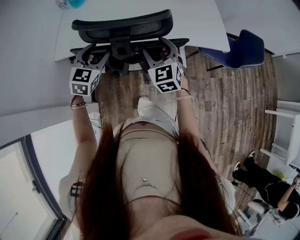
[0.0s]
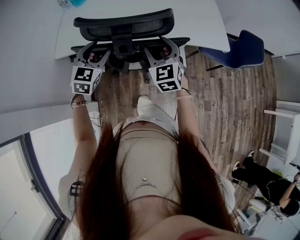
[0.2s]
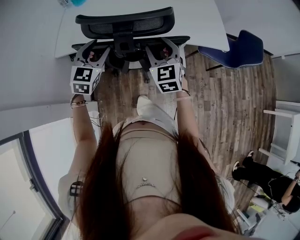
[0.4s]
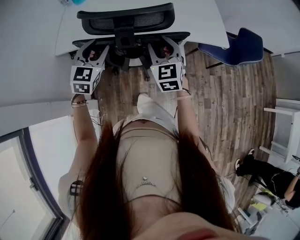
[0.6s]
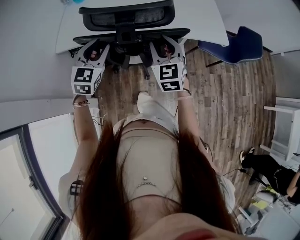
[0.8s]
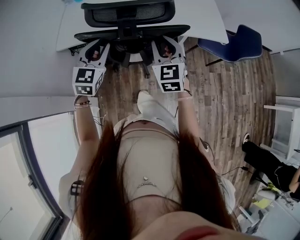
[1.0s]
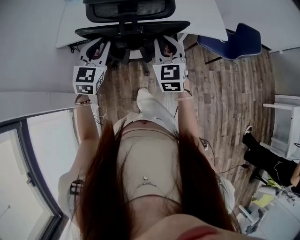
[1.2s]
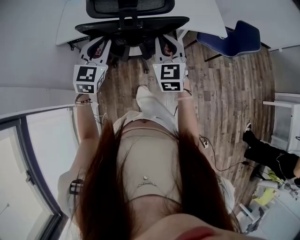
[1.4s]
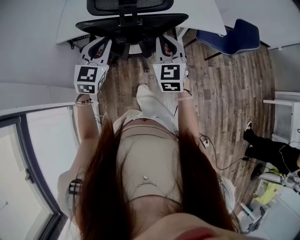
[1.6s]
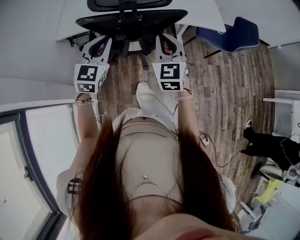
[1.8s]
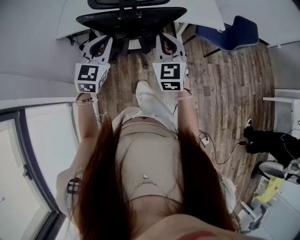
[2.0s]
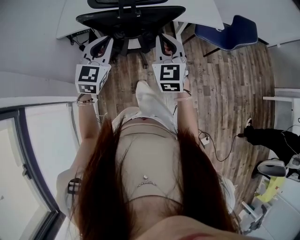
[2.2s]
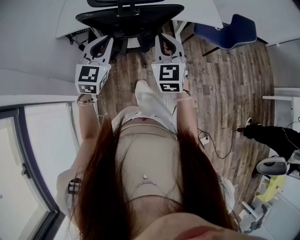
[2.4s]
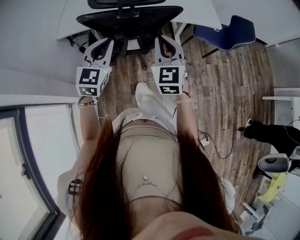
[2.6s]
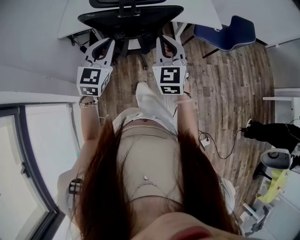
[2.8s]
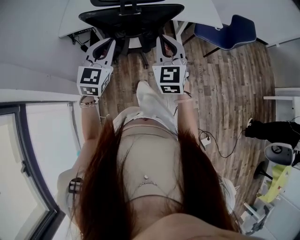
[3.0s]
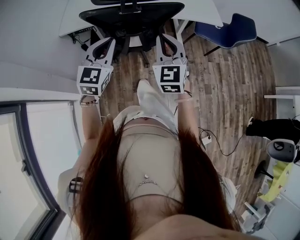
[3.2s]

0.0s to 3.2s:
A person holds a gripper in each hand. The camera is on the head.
0.0s to 1.6s: The grippers both shift backward by roughly 10 cm. The right gripper closes its fingers; the left gripper closes up.
1.6s to 3.2s: Both grippers travel together backward, some 10 cm.

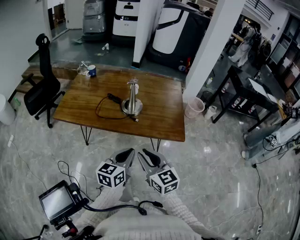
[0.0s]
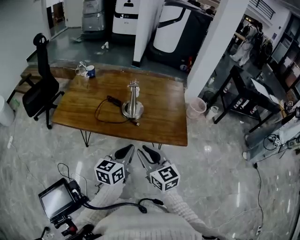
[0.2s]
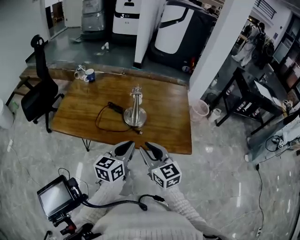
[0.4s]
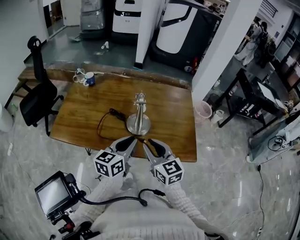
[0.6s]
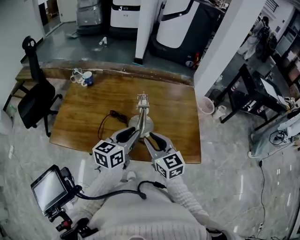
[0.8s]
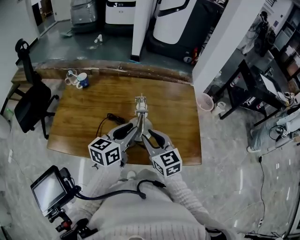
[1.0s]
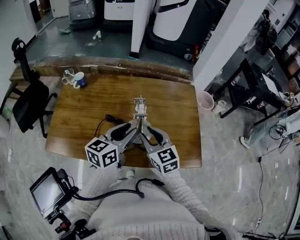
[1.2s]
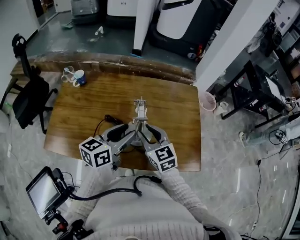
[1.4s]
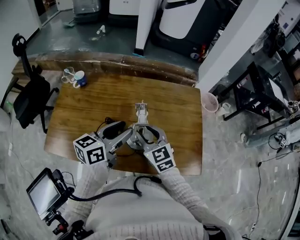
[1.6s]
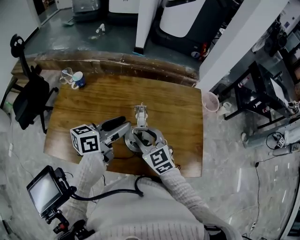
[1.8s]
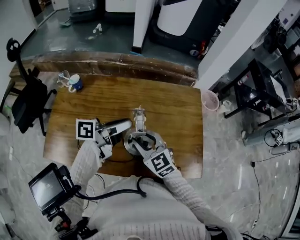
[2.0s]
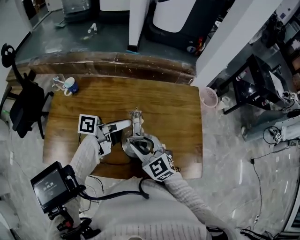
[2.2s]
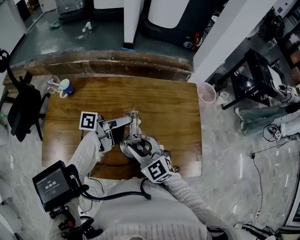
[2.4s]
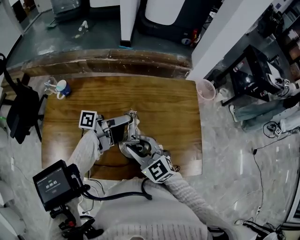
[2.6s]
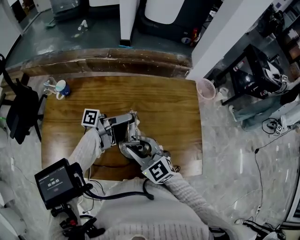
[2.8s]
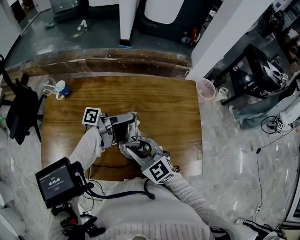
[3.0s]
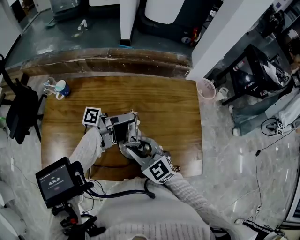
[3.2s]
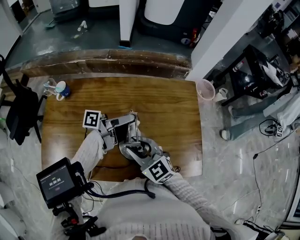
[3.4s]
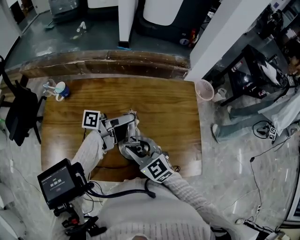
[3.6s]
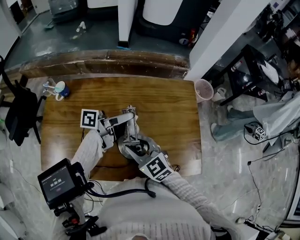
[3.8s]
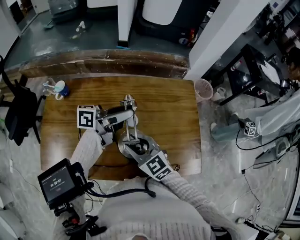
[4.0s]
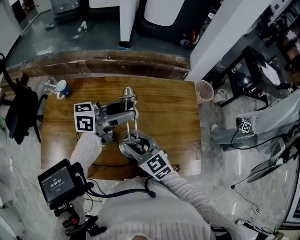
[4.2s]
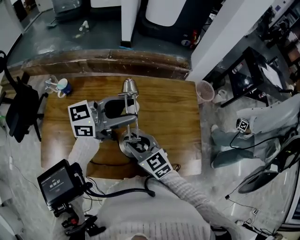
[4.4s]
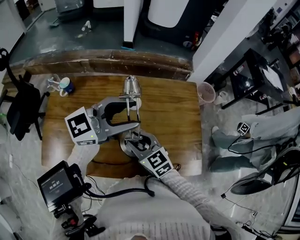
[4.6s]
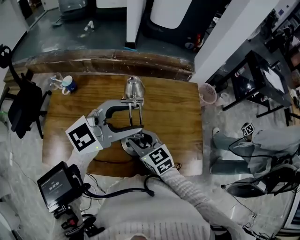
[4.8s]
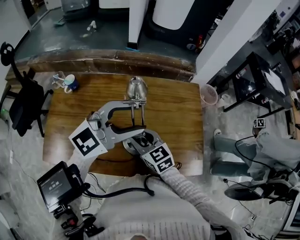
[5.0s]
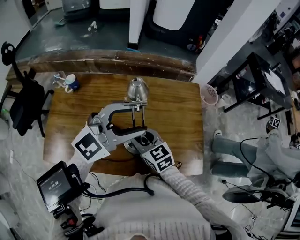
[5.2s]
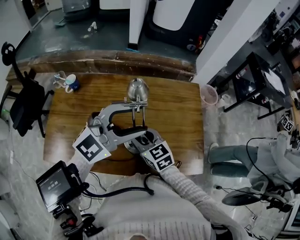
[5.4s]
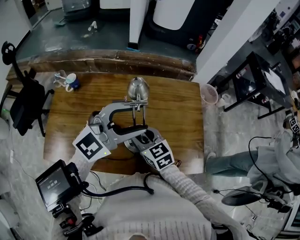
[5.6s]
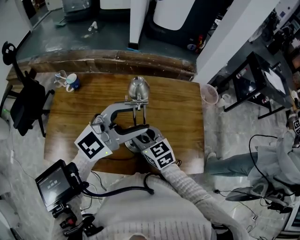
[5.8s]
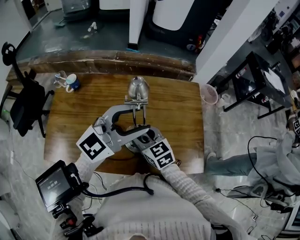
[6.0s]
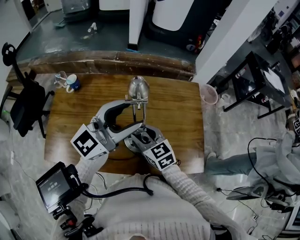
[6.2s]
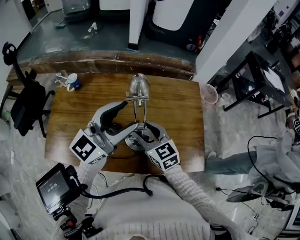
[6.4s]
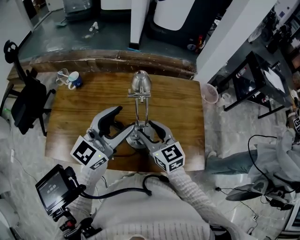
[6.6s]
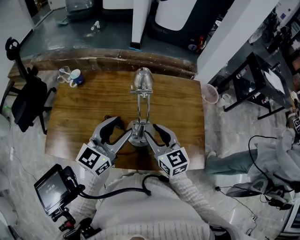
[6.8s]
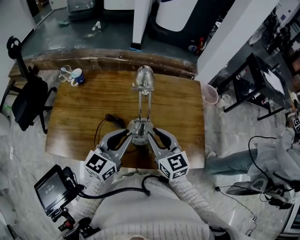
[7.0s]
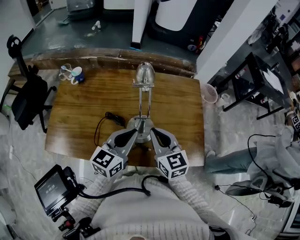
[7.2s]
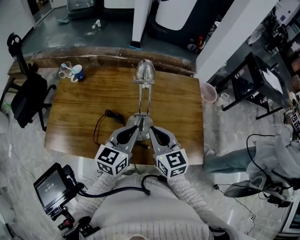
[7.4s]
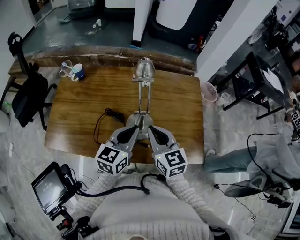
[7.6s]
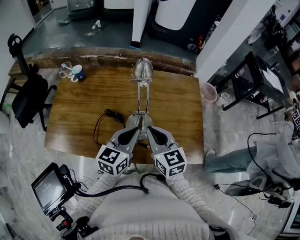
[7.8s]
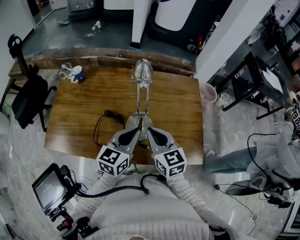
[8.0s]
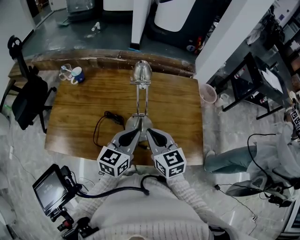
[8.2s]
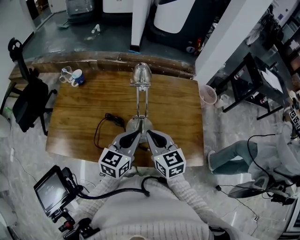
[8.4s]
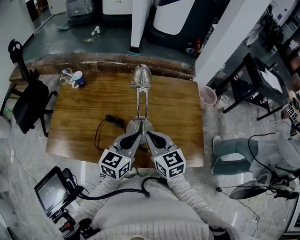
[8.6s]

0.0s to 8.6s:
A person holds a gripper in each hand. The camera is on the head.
0.0s to 1.4s: Both grippers move forward, some 35 cm. The left gripper opens up.
1.4s to 2.8s: The left gripper travels forward by approximately 15 cm, and rotates around the line of its fingers by approximately 60 degrees, counterclockwise from behind.
2.8s to 4.4s: The left gripper heads upward, covering about 10 cm, and rolls clockwise, seen from behind, by some 70 degrees.
4.4s to 5.8s: The left gripper travels backward by some 10 cm, and rotates around the line of its fingers by roughly 40 degrees, clockwise from behind.
5.8s to 7.2s: The right gripper travels upward, to the right and backward by about 10 cm, and closes up, while the left gripper is displaced downward and backward by approximately 15 cm, changes its angle by roughly 50 degrees, and closes.
7.2s to 8.6s: The grippers stay close to where they were, moving slightly.

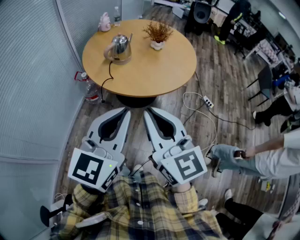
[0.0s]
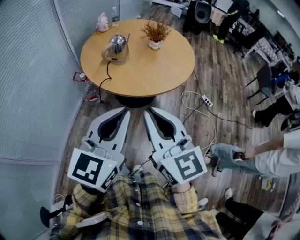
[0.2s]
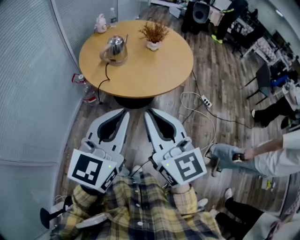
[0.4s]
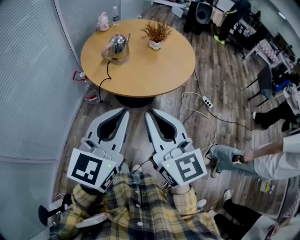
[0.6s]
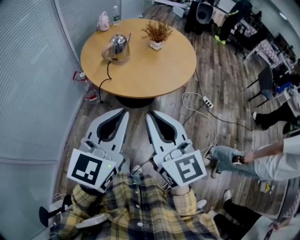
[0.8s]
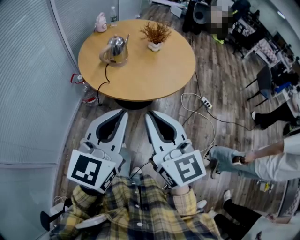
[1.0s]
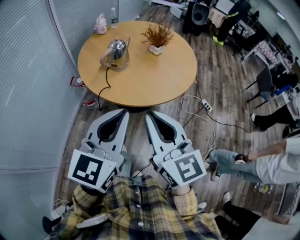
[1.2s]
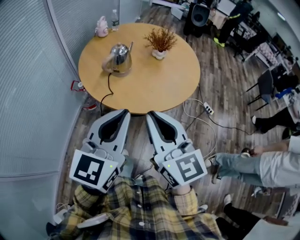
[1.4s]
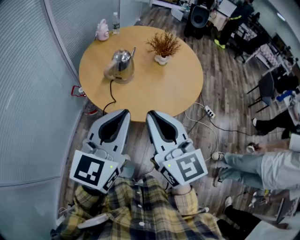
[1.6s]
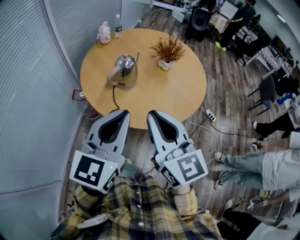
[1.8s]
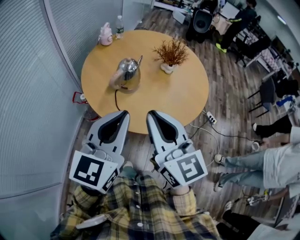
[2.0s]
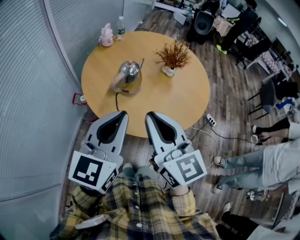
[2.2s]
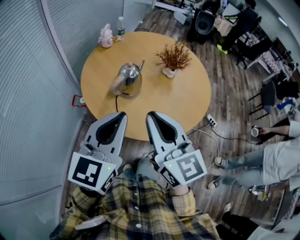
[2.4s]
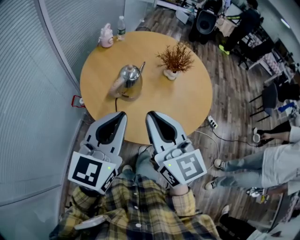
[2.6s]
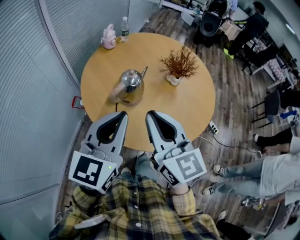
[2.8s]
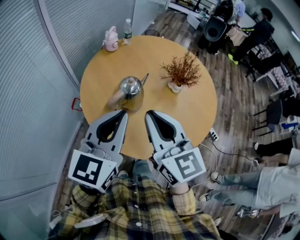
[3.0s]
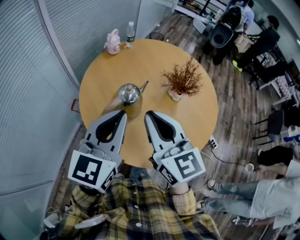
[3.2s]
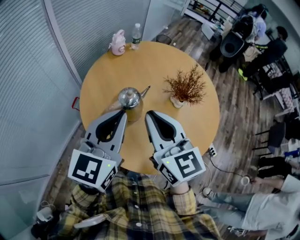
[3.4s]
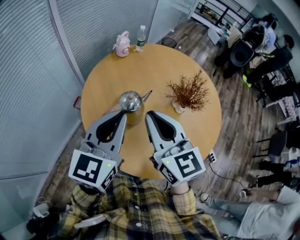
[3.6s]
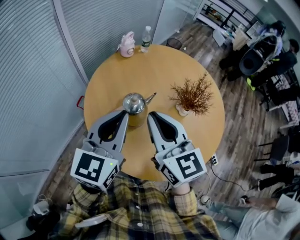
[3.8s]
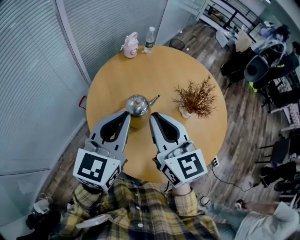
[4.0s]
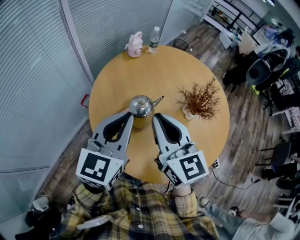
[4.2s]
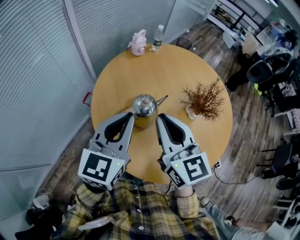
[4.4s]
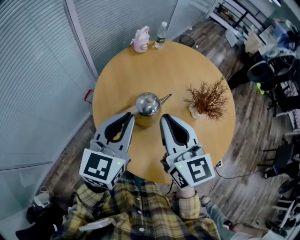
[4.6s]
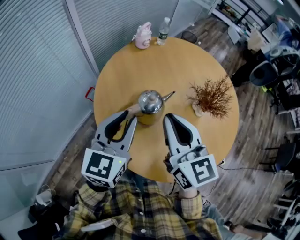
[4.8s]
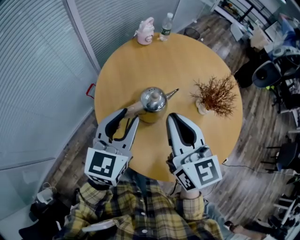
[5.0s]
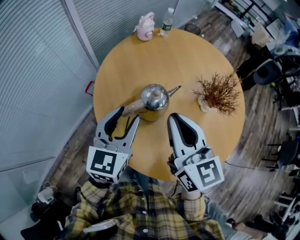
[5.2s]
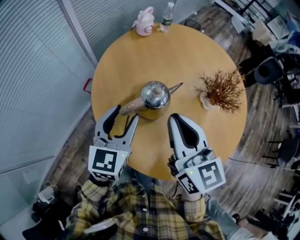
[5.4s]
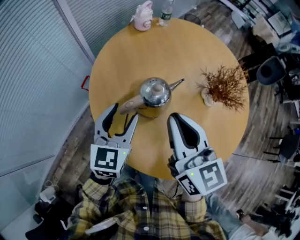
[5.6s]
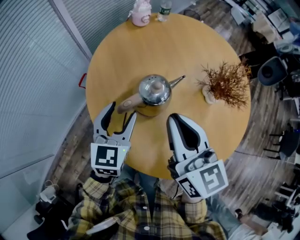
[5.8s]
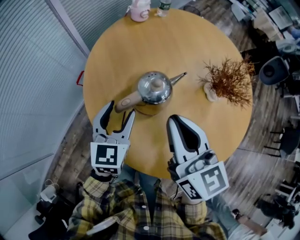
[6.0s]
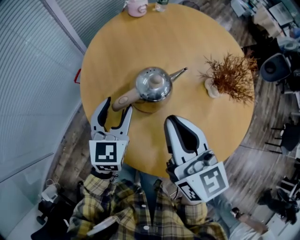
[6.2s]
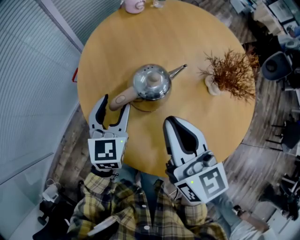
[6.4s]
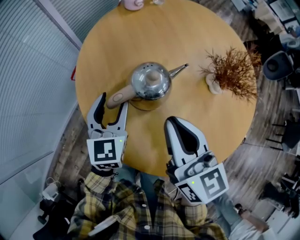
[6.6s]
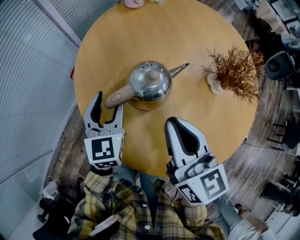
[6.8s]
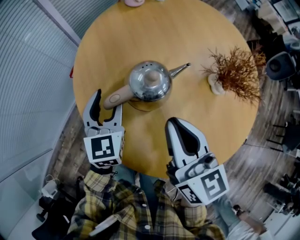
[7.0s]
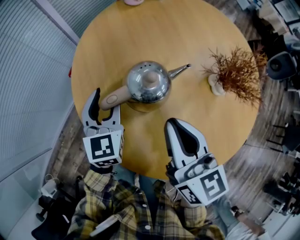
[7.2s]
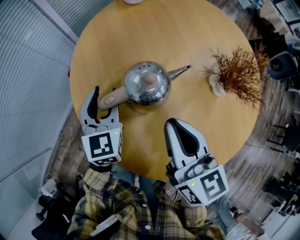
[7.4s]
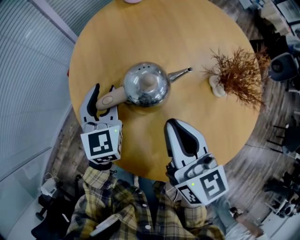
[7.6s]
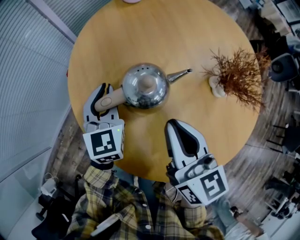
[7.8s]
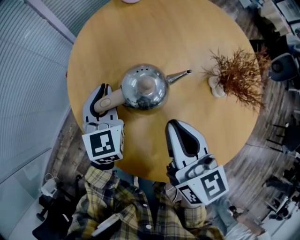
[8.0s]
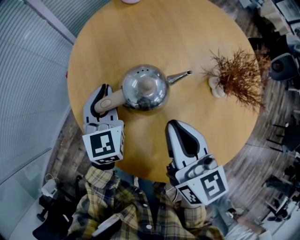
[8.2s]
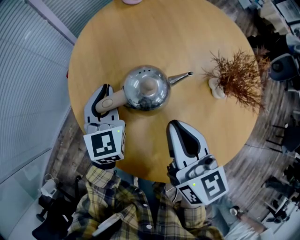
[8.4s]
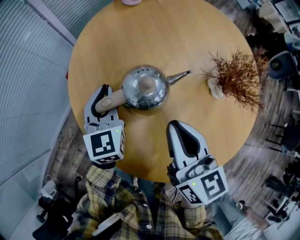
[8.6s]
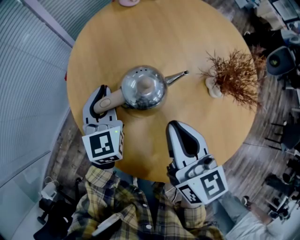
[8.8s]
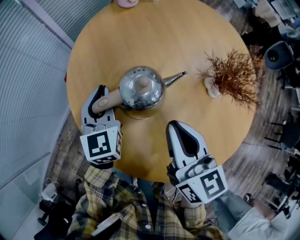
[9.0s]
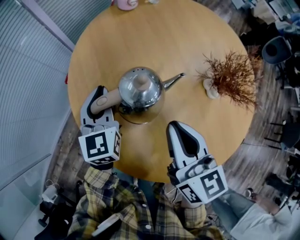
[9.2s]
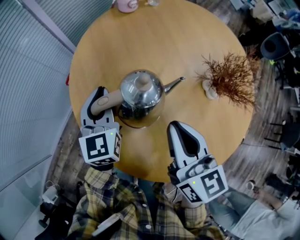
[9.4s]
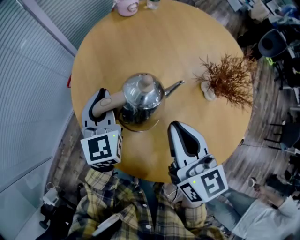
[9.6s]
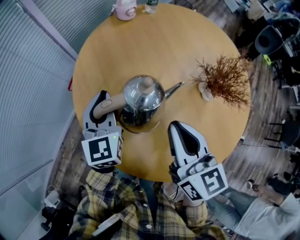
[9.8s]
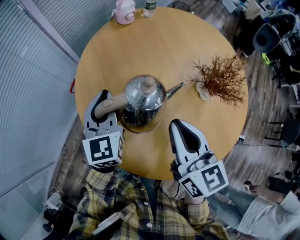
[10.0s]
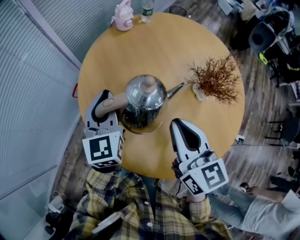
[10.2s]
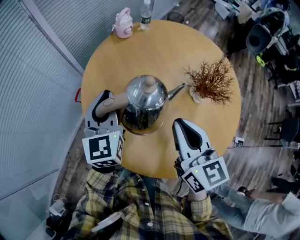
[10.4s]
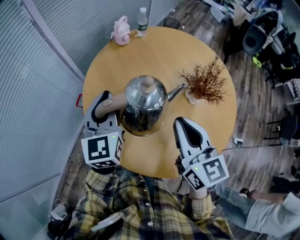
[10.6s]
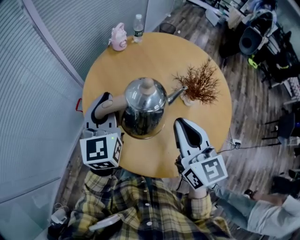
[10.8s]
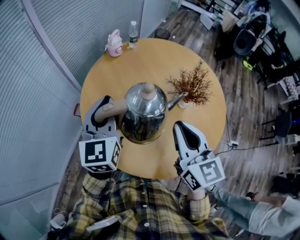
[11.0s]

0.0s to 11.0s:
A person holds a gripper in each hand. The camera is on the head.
0.0s to 1.6s: The two grippers go approximately 15 cm forward.
1.6s to 3.2s: Both grippers travel together forward, some 25 cm.
3.2s to 4.8s: The right gripper shifts approximately 10 cm forward. Meanwhile the left gripper is displaced downward and forward by roughly 10 cm.
4.8s to 6.2s: The right gripper travels downward by roughly 10 cm; the left gripper travels downward by approximately 20 cm, and opens its fingers.
6.2s to 7.8s: The right gripper is displaced downward by roughly 5 cm; the left gripper shifts some 5 cm forward, and closes.
7.8s to 9.4s: The grippers move only a little.
9.4s to 11.0s: Both grippers move upward, roughly 15 cm.

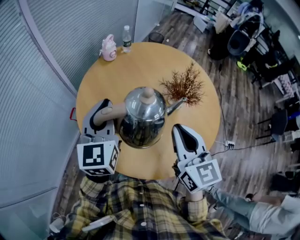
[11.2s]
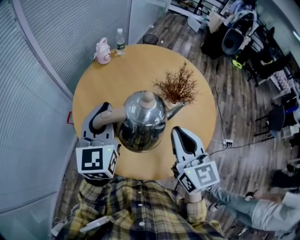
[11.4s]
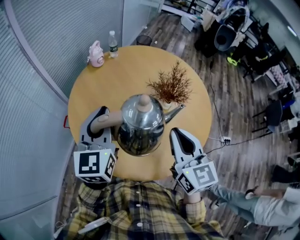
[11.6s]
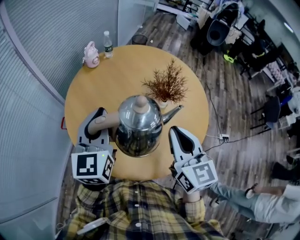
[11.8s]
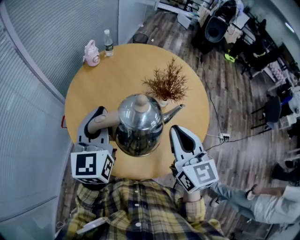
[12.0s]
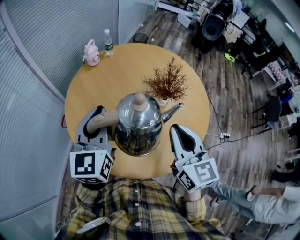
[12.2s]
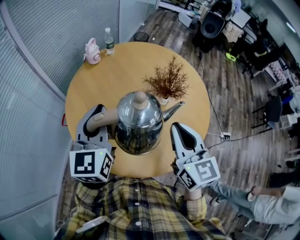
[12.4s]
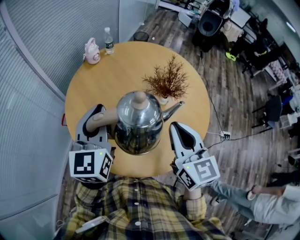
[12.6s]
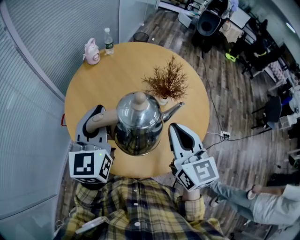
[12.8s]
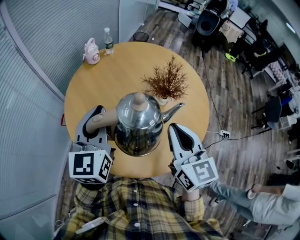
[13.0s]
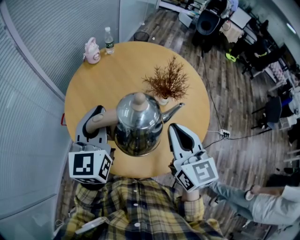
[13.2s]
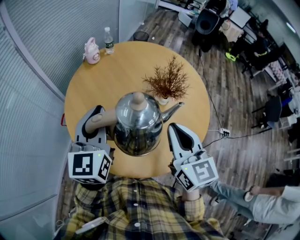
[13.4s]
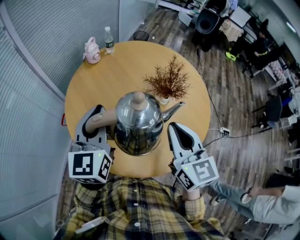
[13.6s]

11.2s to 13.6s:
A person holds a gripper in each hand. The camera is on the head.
11.2s to 12.4s: Both grippers move to the right, some 5 cm.
12.4s to 13.6s: Both grippers stay put.
